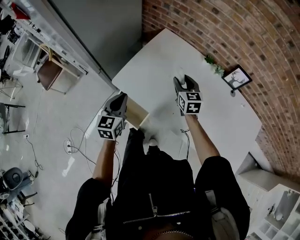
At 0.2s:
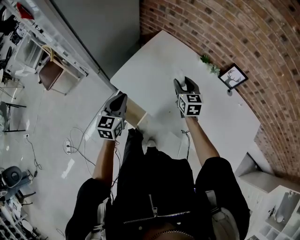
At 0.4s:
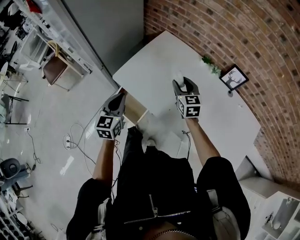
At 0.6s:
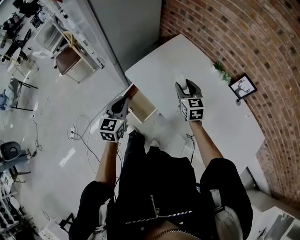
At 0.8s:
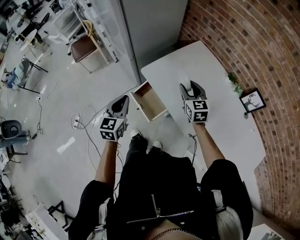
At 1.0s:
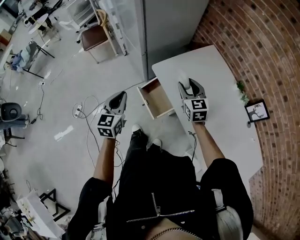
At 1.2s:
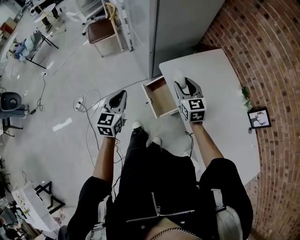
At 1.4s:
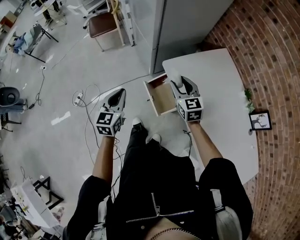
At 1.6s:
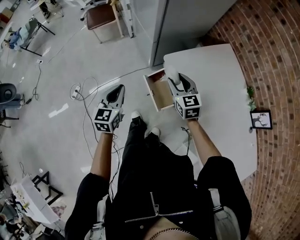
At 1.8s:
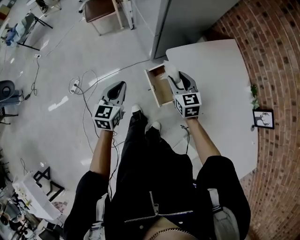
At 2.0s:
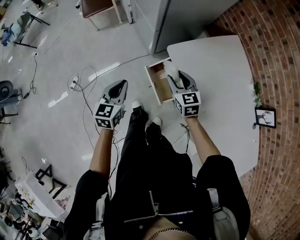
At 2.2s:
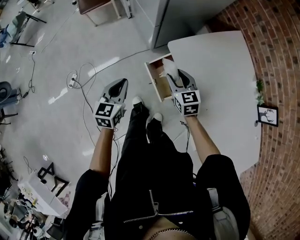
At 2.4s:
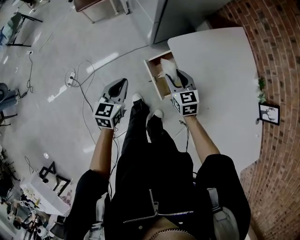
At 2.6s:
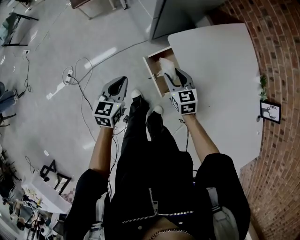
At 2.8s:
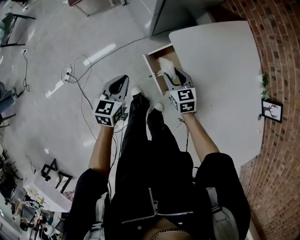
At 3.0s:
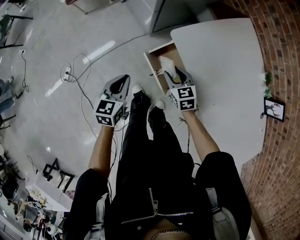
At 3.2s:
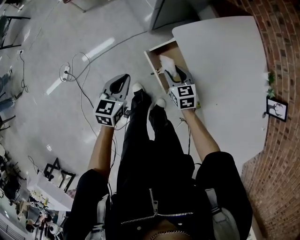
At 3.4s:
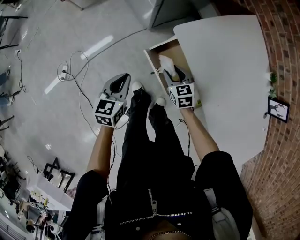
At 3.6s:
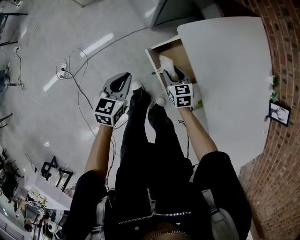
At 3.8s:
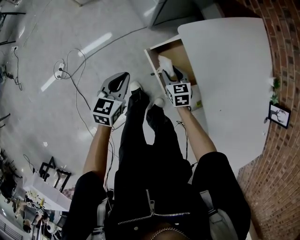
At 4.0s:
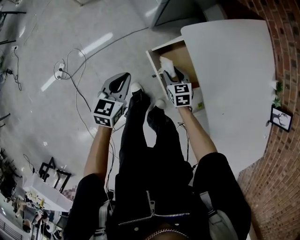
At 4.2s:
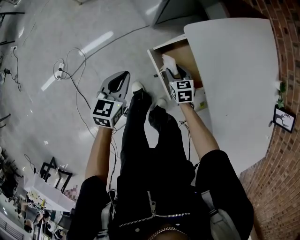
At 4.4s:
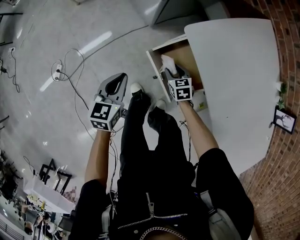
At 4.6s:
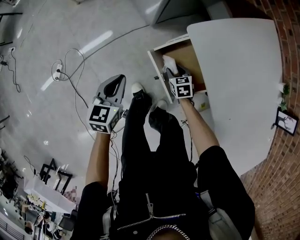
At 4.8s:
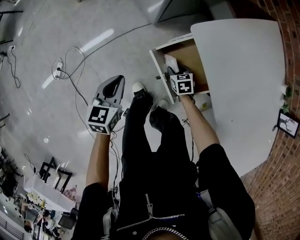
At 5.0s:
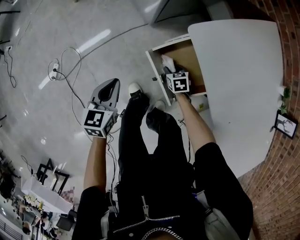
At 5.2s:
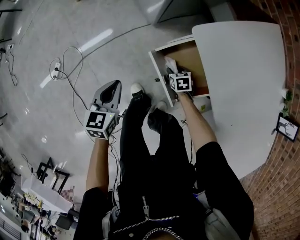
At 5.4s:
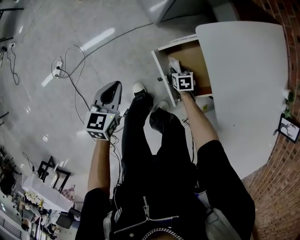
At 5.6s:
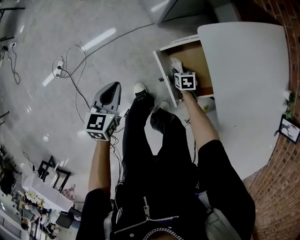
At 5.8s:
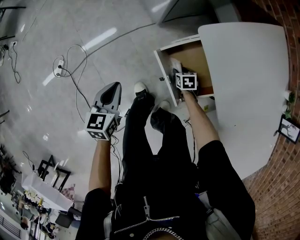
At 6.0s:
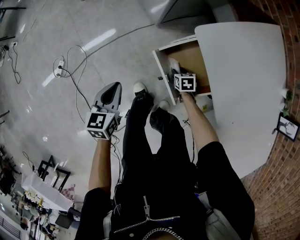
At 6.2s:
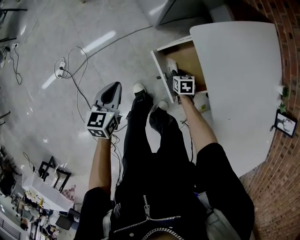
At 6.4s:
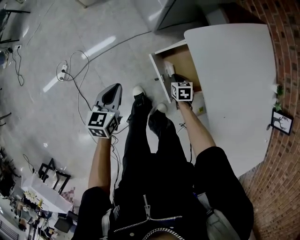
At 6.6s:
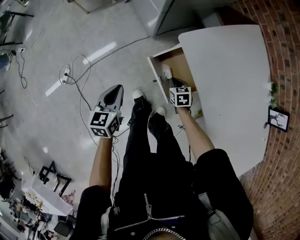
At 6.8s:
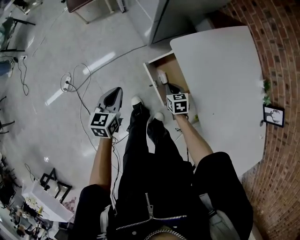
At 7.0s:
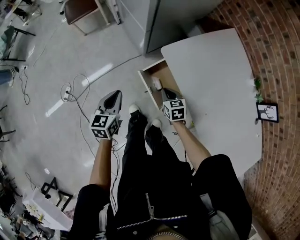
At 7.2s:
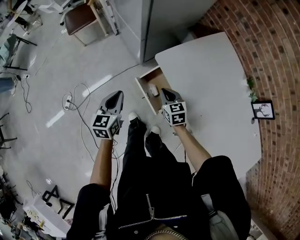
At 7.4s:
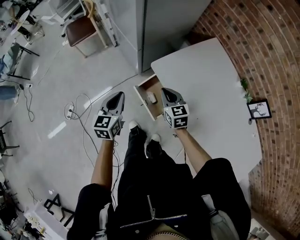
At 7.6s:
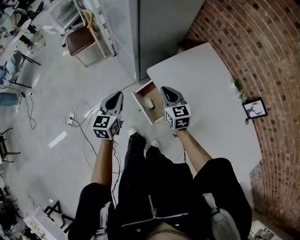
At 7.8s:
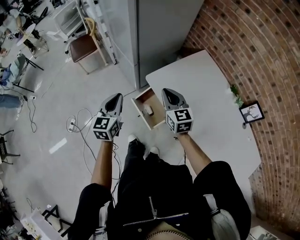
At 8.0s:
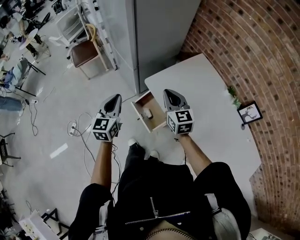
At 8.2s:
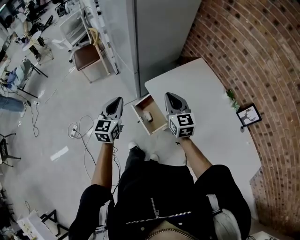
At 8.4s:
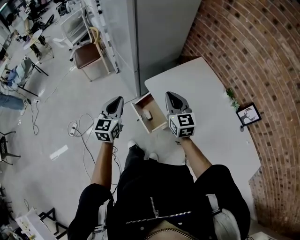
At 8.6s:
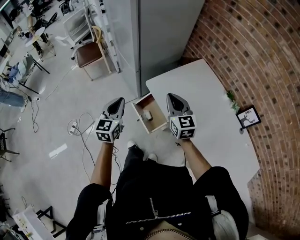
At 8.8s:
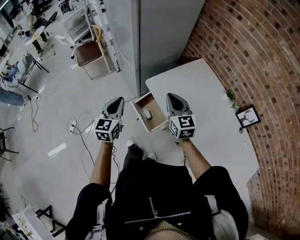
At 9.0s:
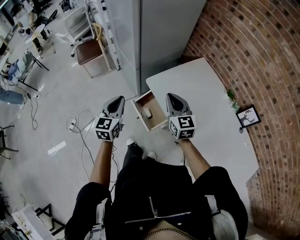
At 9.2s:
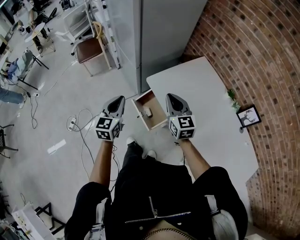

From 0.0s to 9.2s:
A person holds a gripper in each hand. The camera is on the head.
From 0.0s to 1.6s: The left gripper shifts by about 25 cm, and rotates some 30 degrees, while the right gripper shifts by some 30 cm, and turns by about 40 degrees.
From 1.6s to 3.0s: Both grippers move downward, roughly 15 cm.
From 3.0s to 4.6s: The left gripper goes approximately 10 cm downward, while the right gripper heads downward, covering approximately 25 cm.
From 4.6s to 6.2s: The right gripper reaches approximately 10 cm downward, then returns.
From 6.2s to 7.6s: The left gripper heads upward, covering approximately 25 cm, and turns by roughly 20 degrees. The right gripper is displaced upward by about 50 cm, and points its fingers approximately 40 degrees further upward.
From 7.6s to 9.2s: The left gripper changes place by approximately 5 cm. Meanwhile the right gripper shifts some 10 cm upward and backward.

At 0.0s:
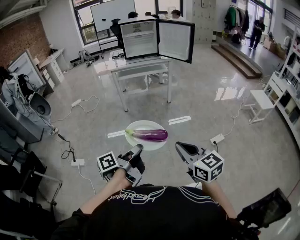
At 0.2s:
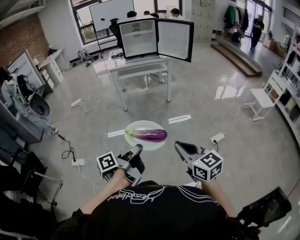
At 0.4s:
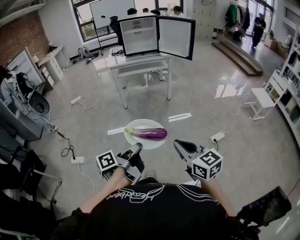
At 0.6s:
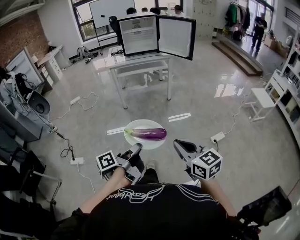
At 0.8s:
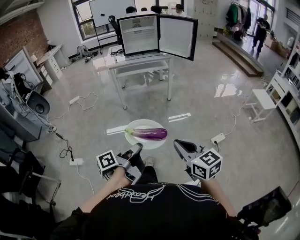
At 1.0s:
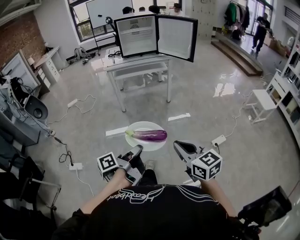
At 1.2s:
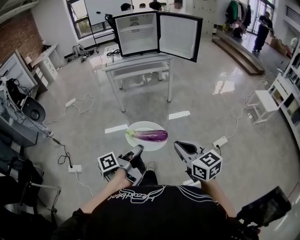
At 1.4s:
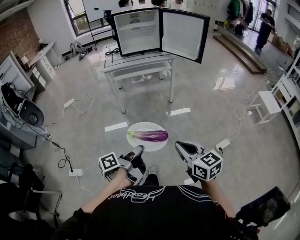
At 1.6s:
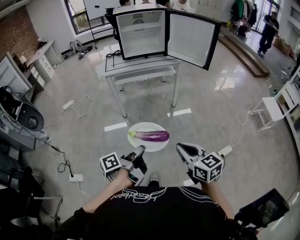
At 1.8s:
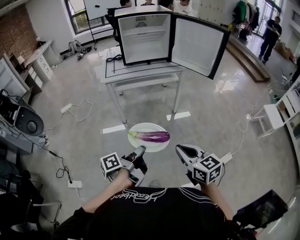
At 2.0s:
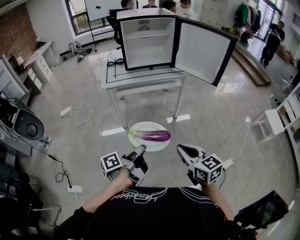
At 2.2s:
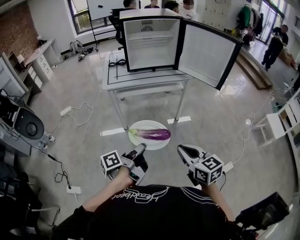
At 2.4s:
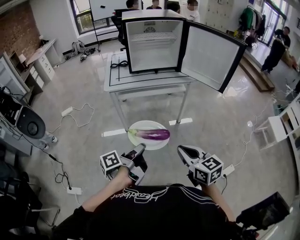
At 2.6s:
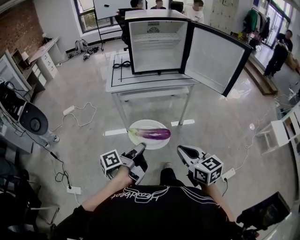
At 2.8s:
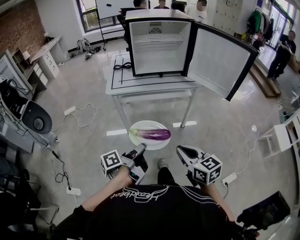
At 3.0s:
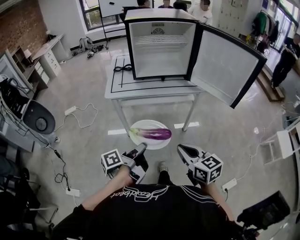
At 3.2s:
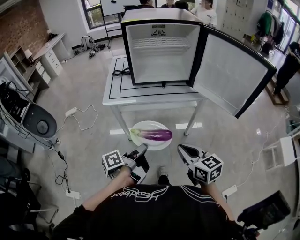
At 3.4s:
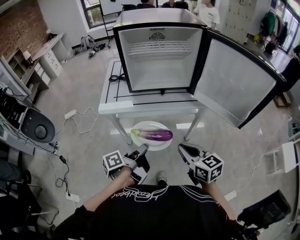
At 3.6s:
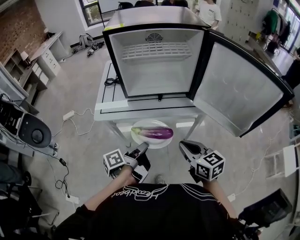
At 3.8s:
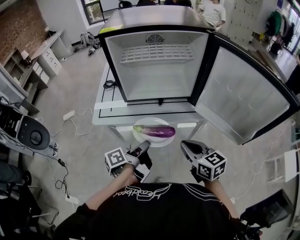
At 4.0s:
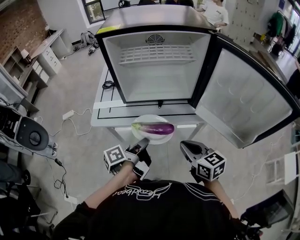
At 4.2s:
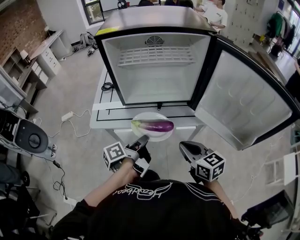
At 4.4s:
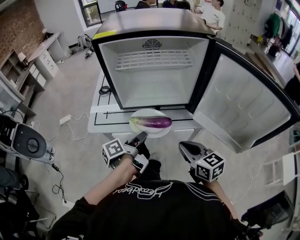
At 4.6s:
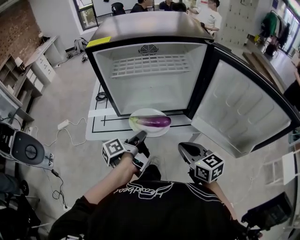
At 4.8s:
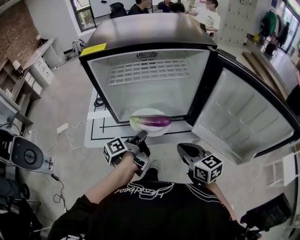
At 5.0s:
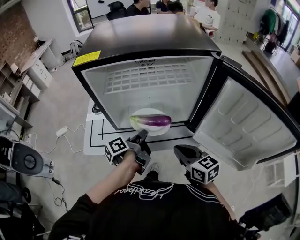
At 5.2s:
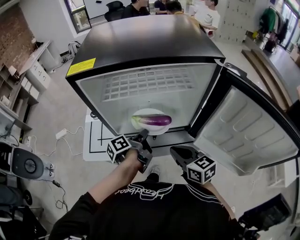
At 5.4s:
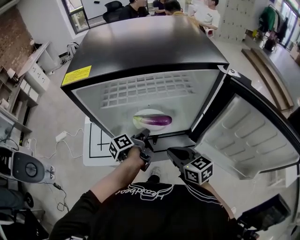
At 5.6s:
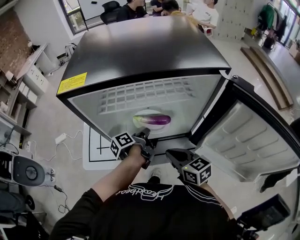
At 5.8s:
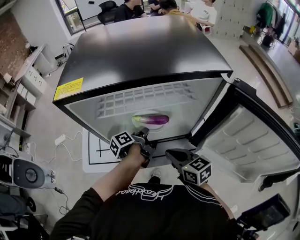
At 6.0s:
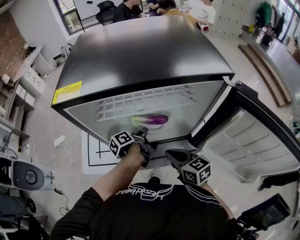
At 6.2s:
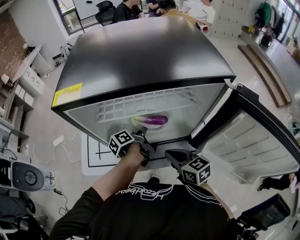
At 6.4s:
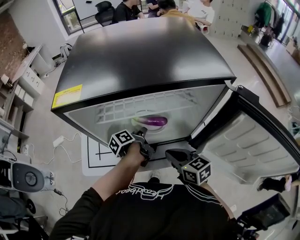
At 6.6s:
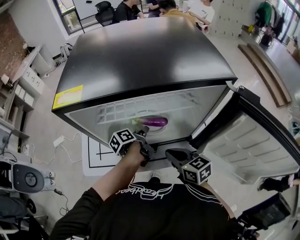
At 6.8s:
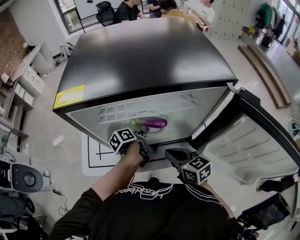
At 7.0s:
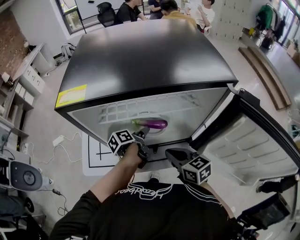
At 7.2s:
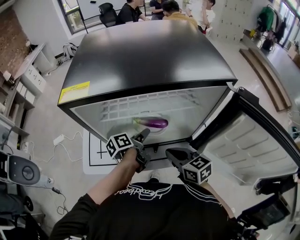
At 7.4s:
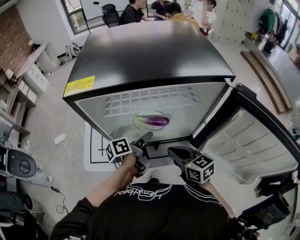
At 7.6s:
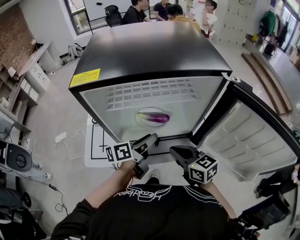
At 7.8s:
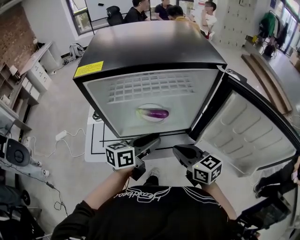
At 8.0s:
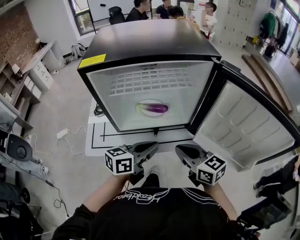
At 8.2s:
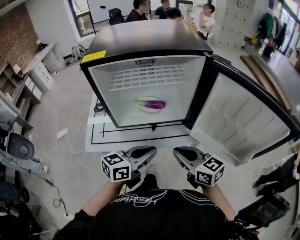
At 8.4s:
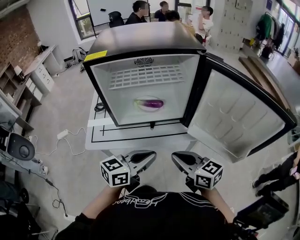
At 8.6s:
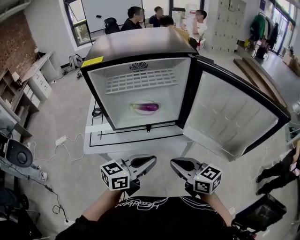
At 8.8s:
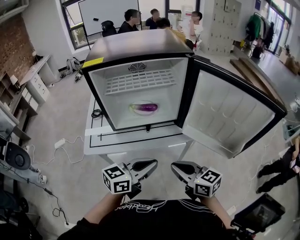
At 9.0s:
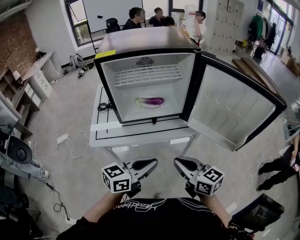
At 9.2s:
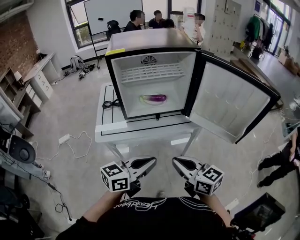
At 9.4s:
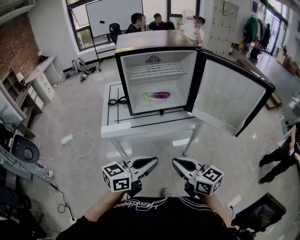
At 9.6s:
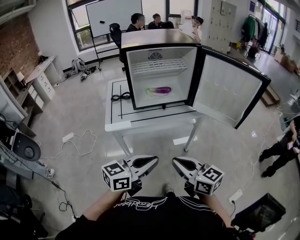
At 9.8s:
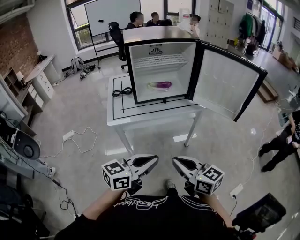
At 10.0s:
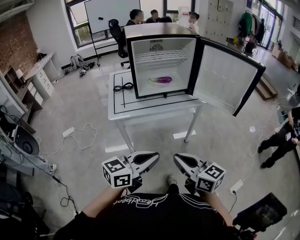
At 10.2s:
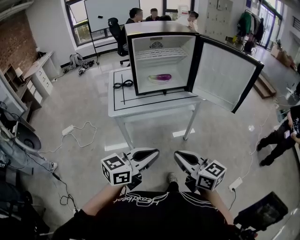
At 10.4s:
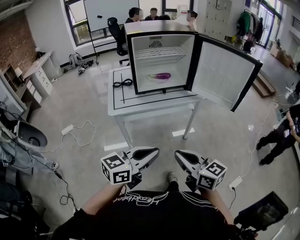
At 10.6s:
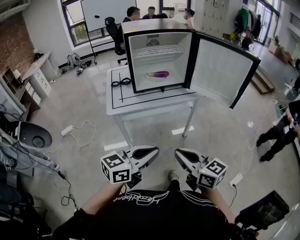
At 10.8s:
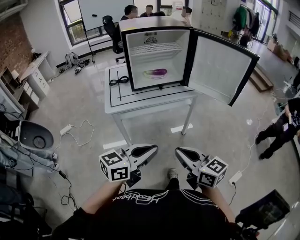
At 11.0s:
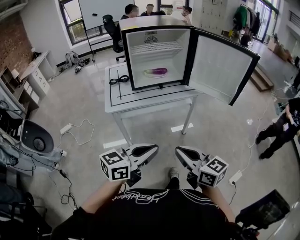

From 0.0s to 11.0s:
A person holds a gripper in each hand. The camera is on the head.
From 0.0s to 1.6s: The right gripper ends up some 25 cm from where it was.
From 1.6s to 3.2s: The right gripper shifts by about 35 cm.
From 3.2s to 4.8s: The right gripper moves roughly 25 cm.
From 4.8s to 6.2s: The right gripper ends up roughly 10 cm from where it was.
From 6.2s to 7.8s: The right gripper moves approximately 5 cm.
From 7.8s to 9.4s: The right gripper shifts by roughly 25 cm.
From 9.4s to 11.0s: The right gripper shifts by approximately 15 cm.

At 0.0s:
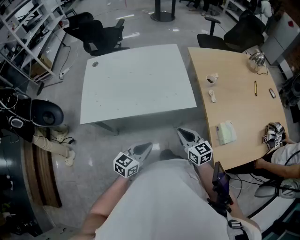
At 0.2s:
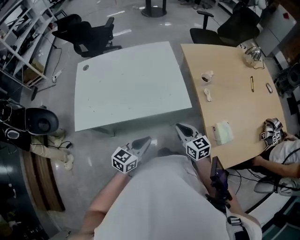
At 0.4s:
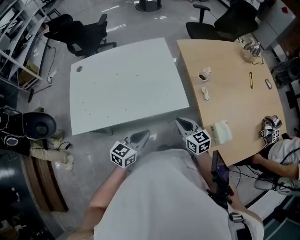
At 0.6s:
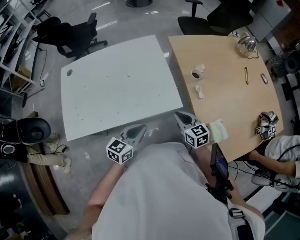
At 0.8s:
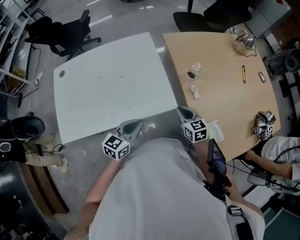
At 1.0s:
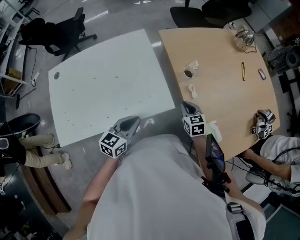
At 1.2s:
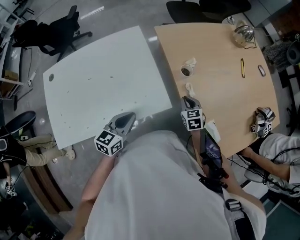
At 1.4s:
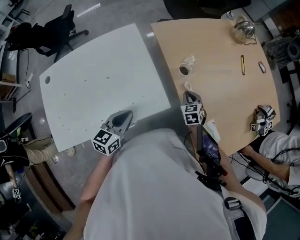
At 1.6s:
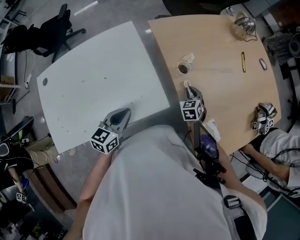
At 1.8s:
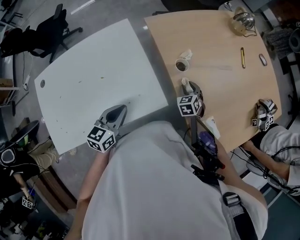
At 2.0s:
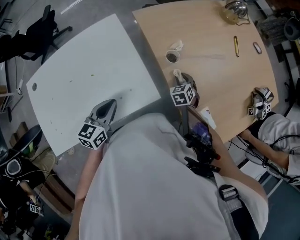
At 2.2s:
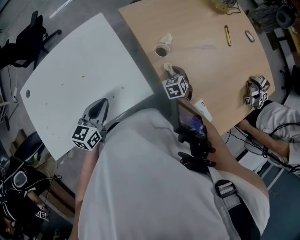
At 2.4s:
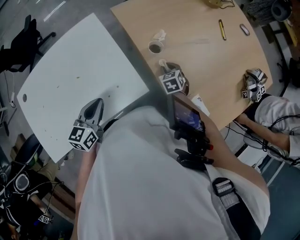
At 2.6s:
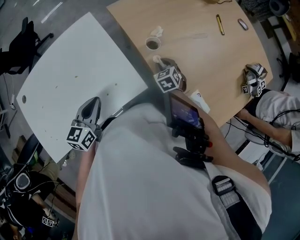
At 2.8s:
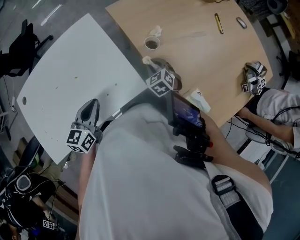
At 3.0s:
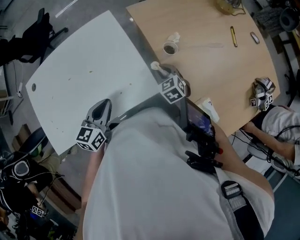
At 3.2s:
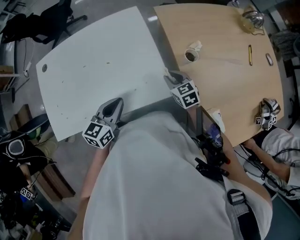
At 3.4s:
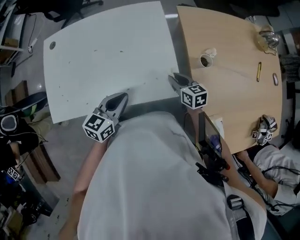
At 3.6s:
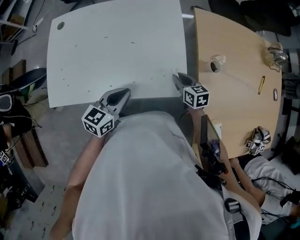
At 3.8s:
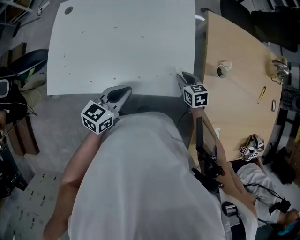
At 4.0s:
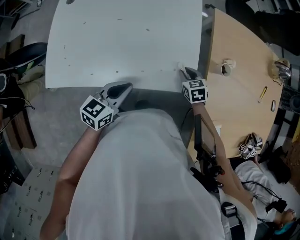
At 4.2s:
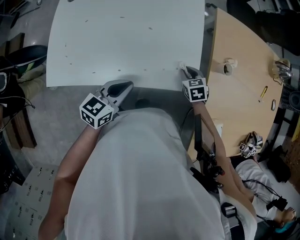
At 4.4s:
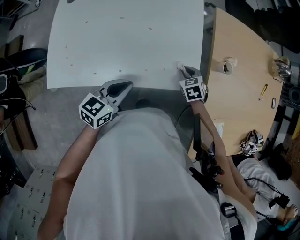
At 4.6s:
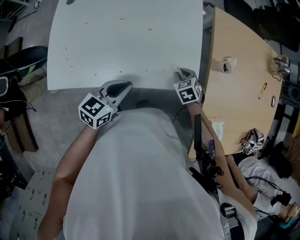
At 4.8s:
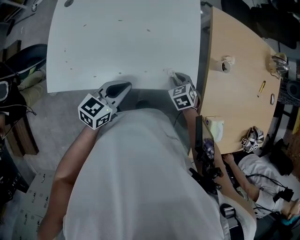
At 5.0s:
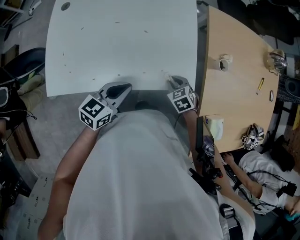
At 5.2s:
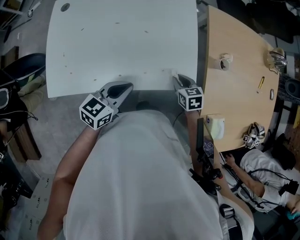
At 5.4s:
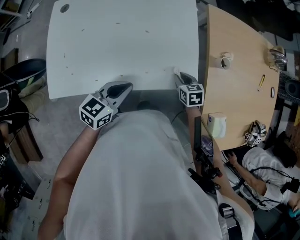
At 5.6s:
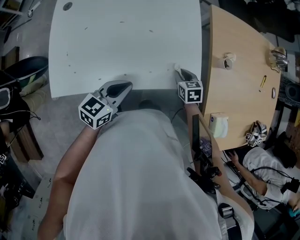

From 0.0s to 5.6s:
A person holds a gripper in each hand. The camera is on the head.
From 0.0s to 1.4s: The left gripper shifts about 25 cm forward; the right gripper travels forward and to the right by some 35 cm, and swivels approximately 40 degrees.
From 1.4s to 2.8s: The right gripper moves to the left, roughly 5 cm.
From 2.8s to 4.2s: The right gripper moves roughly 15 cm, and changes its angle by some 20 degrees. Meanwhile the left gripper ends up about 10 cm from where it was.
